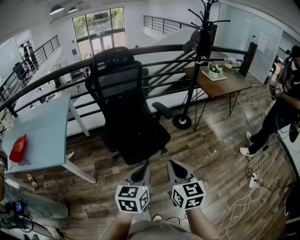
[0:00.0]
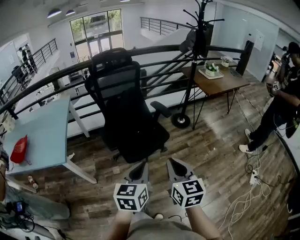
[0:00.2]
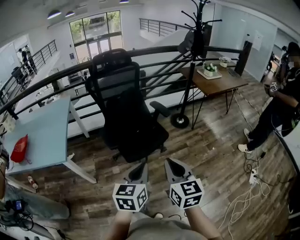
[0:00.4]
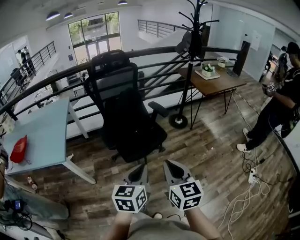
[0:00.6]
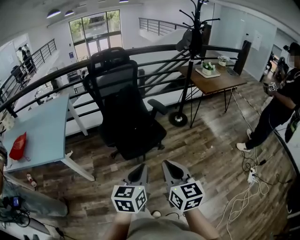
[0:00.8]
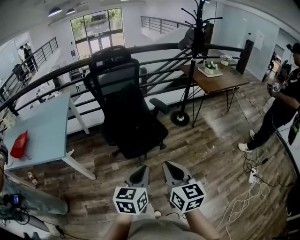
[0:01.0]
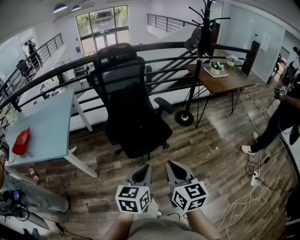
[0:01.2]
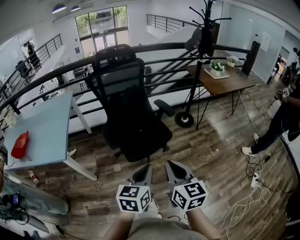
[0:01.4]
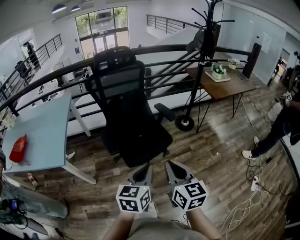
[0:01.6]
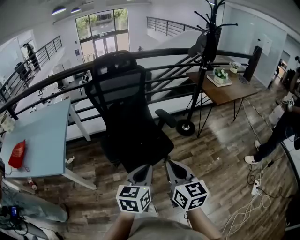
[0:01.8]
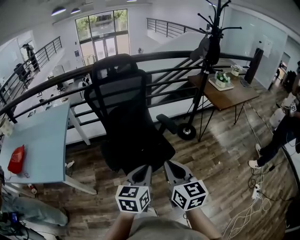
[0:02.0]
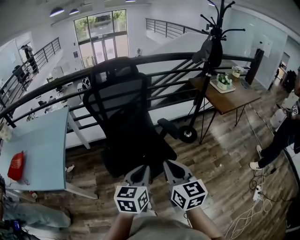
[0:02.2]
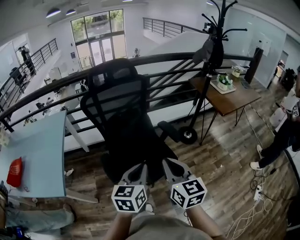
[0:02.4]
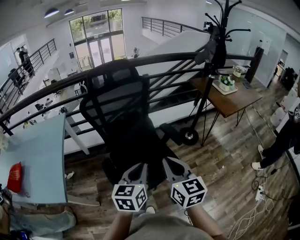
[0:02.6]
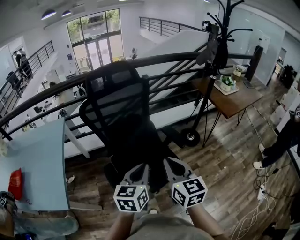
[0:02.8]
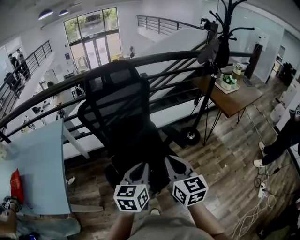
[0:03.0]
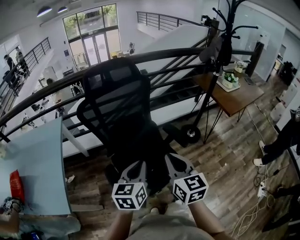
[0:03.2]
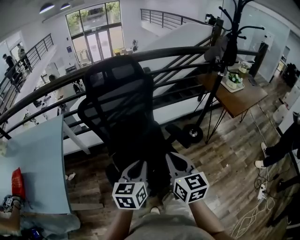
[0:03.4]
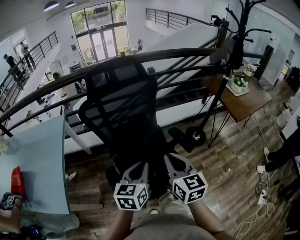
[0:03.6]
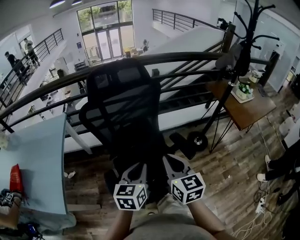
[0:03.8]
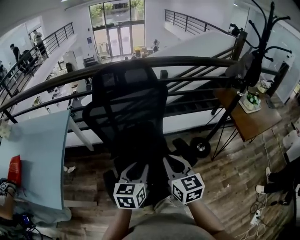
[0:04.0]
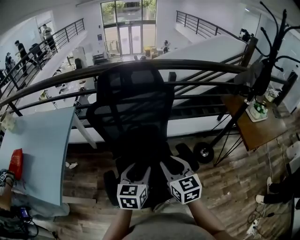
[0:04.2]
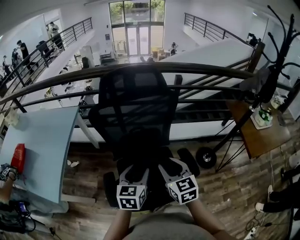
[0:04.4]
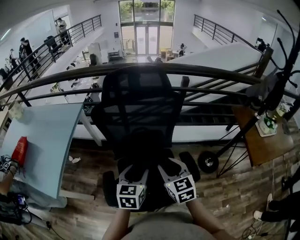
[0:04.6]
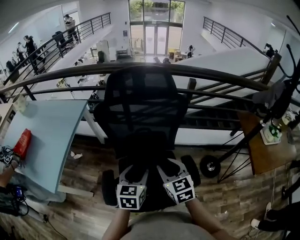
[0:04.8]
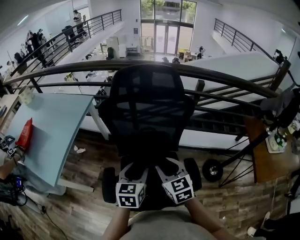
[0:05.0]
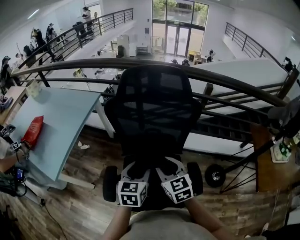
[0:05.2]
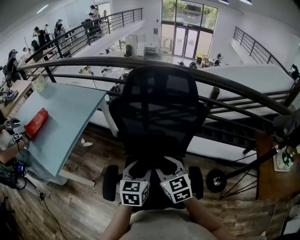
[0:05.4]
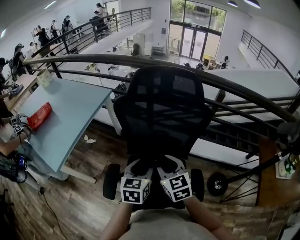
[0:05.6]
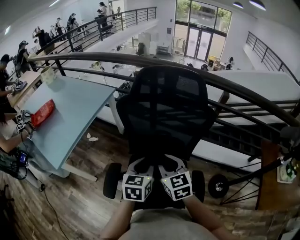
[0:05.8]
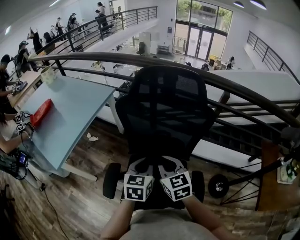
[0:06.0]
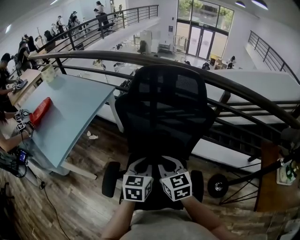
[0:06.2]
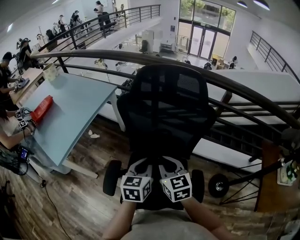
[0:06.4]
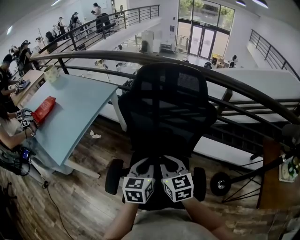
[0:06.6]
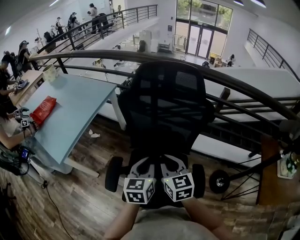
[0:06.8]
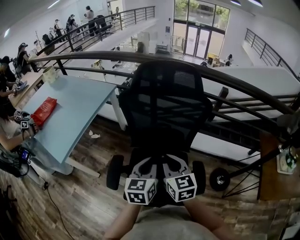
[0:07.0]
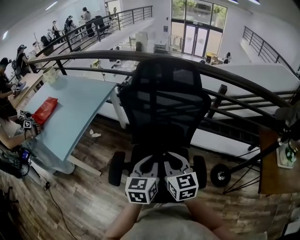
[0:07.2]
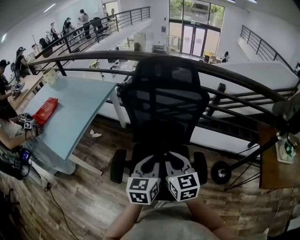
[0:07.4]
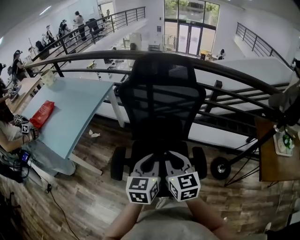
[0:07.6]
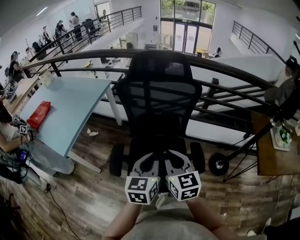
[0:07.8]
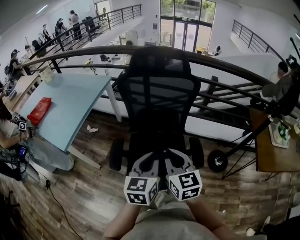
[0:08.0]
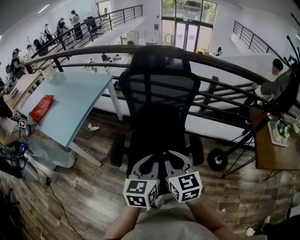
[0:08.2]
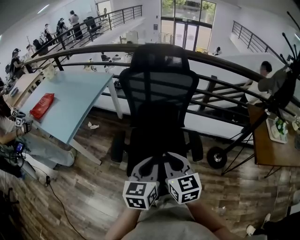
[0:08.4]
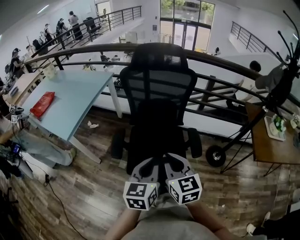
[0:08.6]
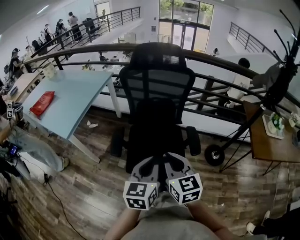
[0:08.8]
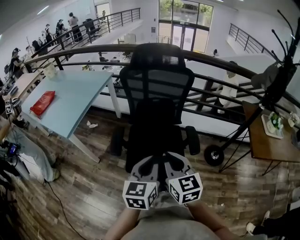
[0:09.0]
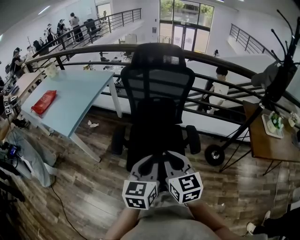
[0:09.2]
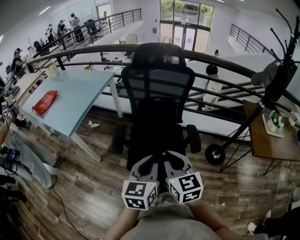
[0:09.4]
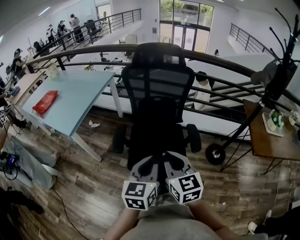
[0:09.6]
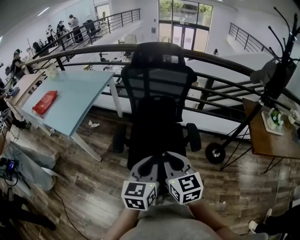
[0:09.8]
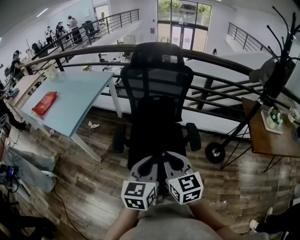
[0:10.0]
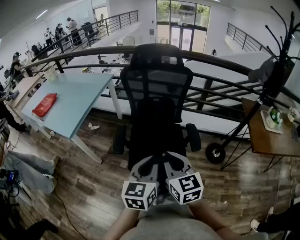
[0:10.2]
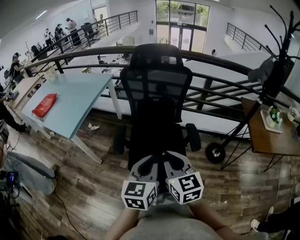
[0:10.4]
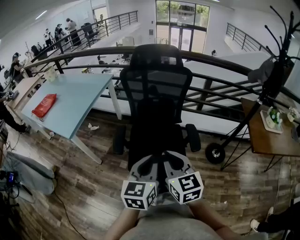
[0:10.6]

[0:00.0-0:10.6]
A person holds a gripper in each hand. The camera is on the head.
0:00.0 to 0:01.6: The right gripper reaches approximately 5 cm backward, then returns, while the left gripper goes backward and returns, roughly 5 cm each way.
0:01.6 to 0:03.0: The grippers both shift forward by about 30 cm.
0:03.0 to 0:04.6: The left gripper heads forward, covering approximately 15 cm, turns by about 20 degrees, and opens its fingers; the right gripper is displaced forward and downward by roughly 20 cm, swivels about 30 degrees, and opens up.
0:04.6 to 0:06.0: The two grippers go some 10 cm forward. The left gripper closes. Meanwhile the right gripper turns by approximately 20 degrees, and closes.
0:06.0 to 0:07.6: Both grippers move backward, some 15 cm.
0:07.6 to 0:09.0: Both grippers travel together backward, about 20 cm.
0:09.0 to 0:10.6: There are only small adjustments of the grippers.

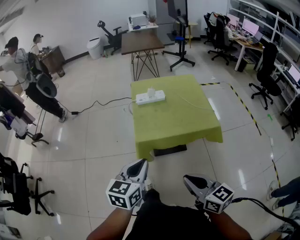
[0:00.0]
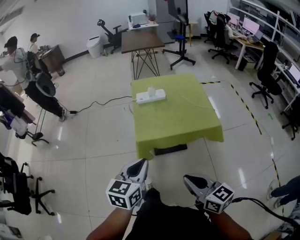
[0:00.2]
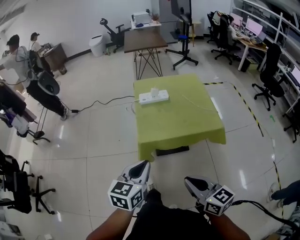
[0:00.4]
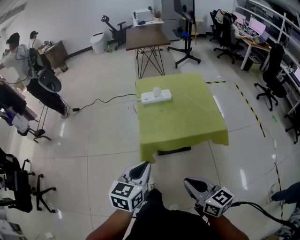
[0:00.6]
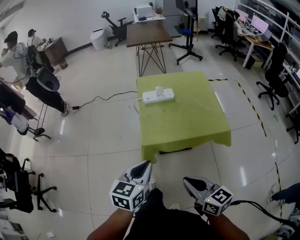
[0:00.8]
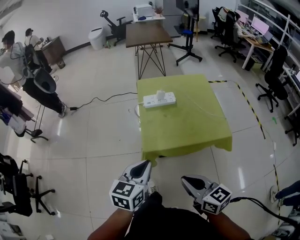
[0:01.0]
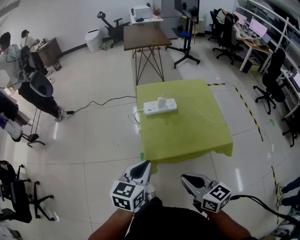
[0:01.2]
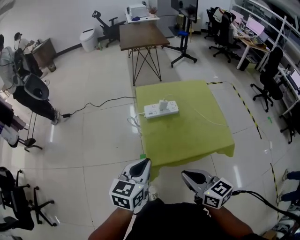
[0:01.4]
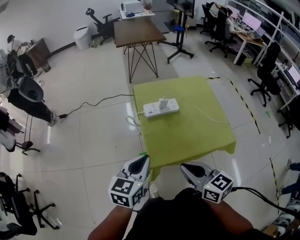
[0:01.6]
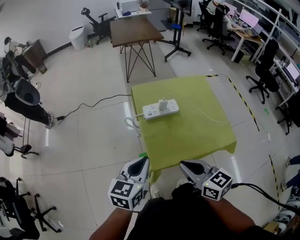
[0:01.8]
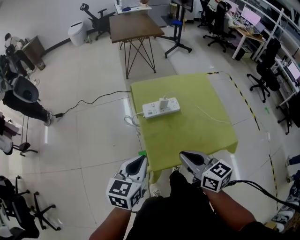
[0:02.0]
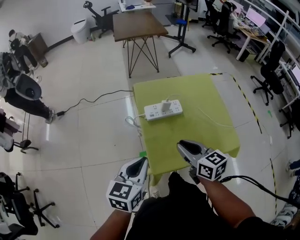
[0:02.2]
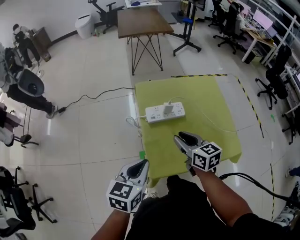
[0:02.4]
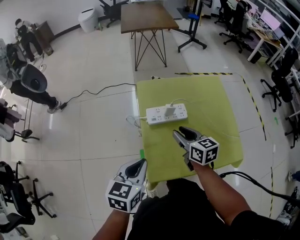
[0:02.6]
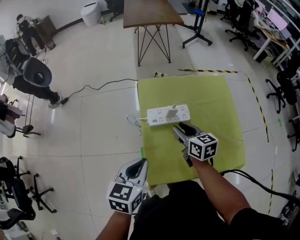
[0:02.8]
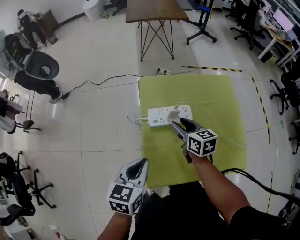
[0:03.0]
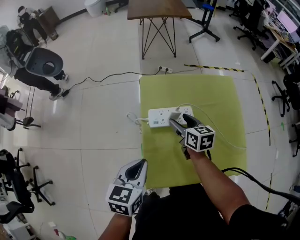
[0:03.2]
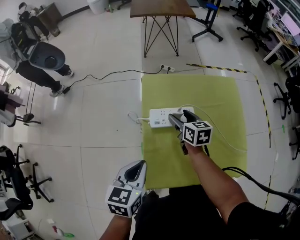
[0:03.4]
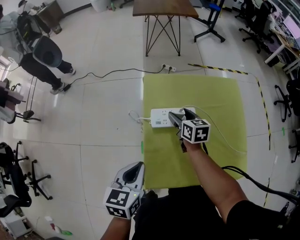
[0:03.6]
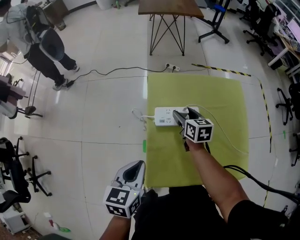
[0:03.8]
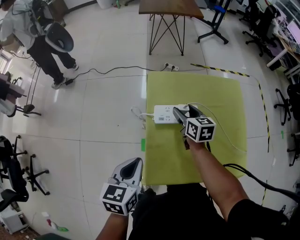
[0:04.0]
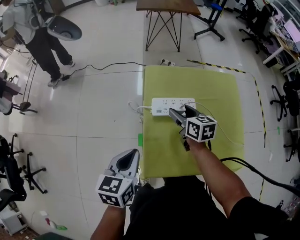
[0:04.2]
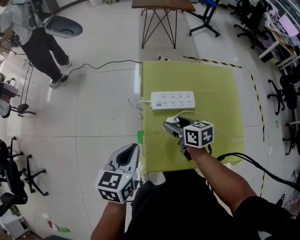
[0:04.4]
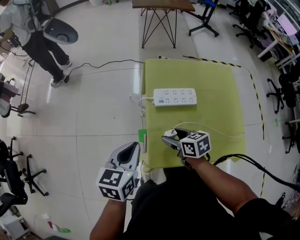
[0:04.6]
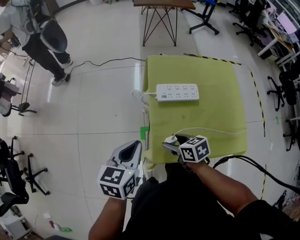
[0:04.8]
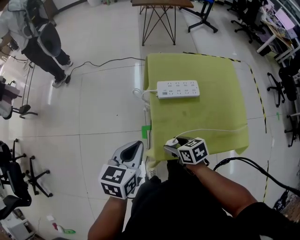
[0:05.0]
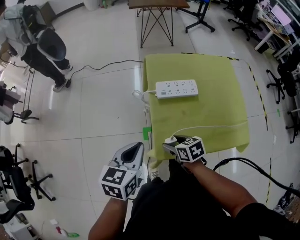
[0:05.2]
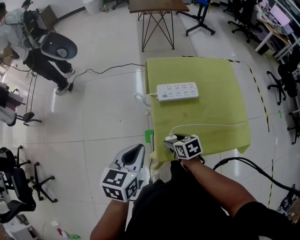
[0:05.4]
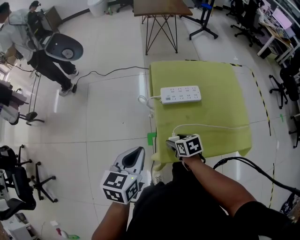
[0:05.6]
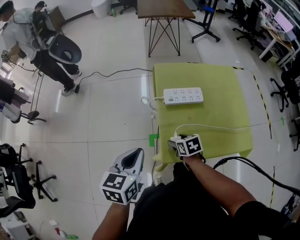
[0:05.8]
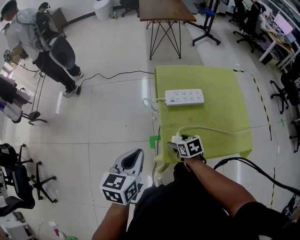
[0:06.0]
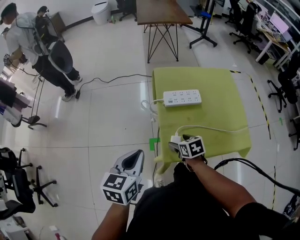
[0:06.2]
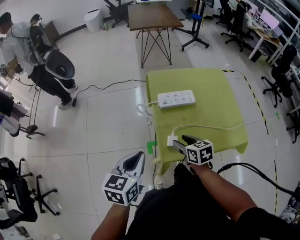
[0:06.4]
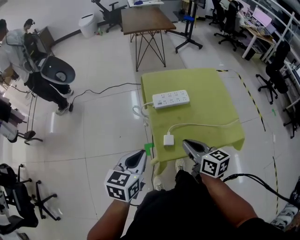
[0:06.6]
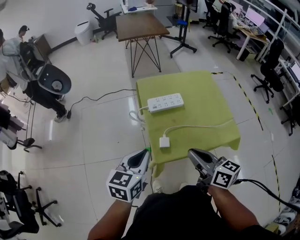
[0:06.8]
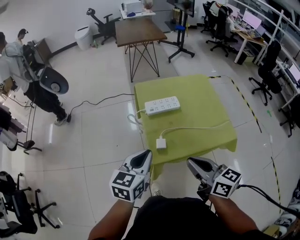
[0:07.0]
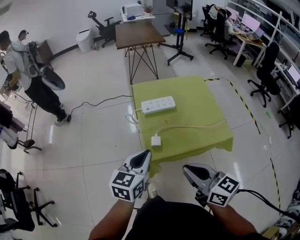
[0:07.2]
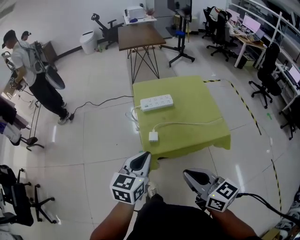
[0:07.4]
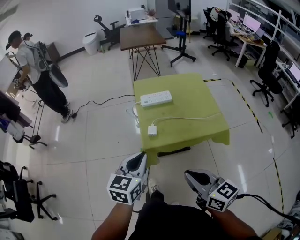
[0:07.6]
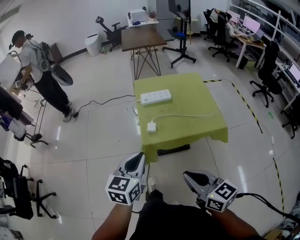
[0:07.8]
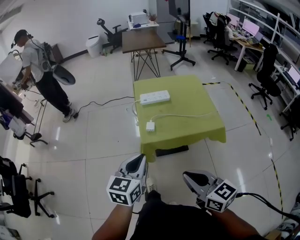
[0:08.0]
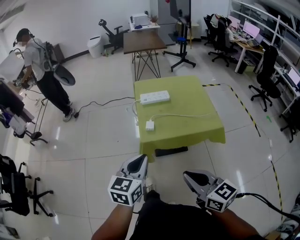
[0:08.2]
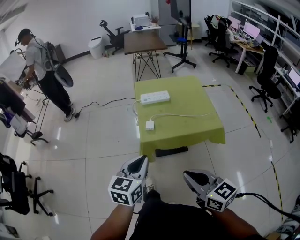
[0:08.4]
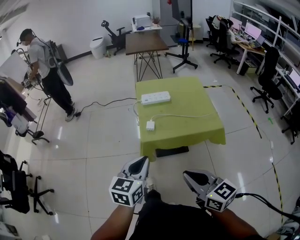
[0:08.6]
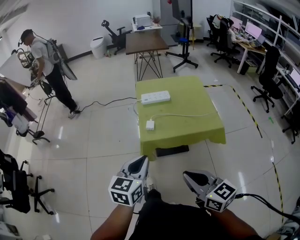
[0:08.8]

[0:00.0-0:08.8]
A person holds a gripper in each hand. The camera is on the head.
0:00.0 to 0:01.4: The two grippers go roughly 20 cm forward.
0:01.4 to 0:03.0: The right gripper goes roughly 40 cm forward and downward, and opens its fingers. The left gripper goes about 20 cm forward and downward.
0:03.0 to 0:04.4: The right gripper moves to the left and backward, roughly 10 cm. Meanwhile the left gripper shifts approximately 5 cm to the left.
0:04.4 to 0:05.8: The left gripper travels backward and to the left by some 10 cm; the right gripper goes roughly 15 cm backward, downward and to the left, and rotates some 20 degrees.
0:05.8 to 0:07.4: The left gripper moves backward, to the right and upward, about 20 cm. Meanwhile the right gripper heads upward and backward, covering some 40 cm, points its fingers roughly 40 degrees further upward, and closes its fingers.
0:07.4 to 0:08.8: The grippers both shift backward by approximately 15 cm.

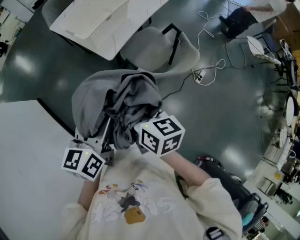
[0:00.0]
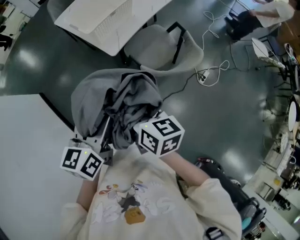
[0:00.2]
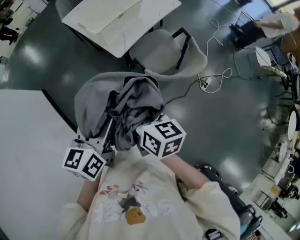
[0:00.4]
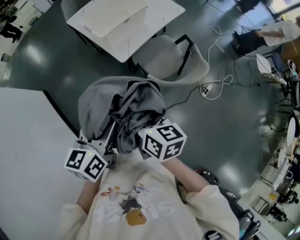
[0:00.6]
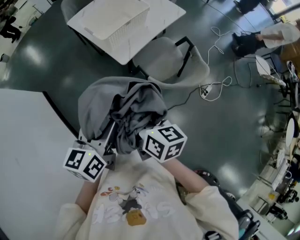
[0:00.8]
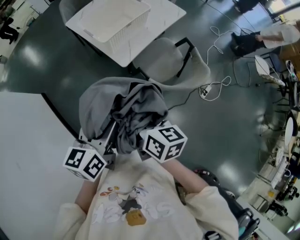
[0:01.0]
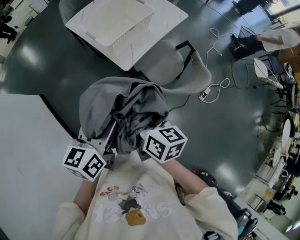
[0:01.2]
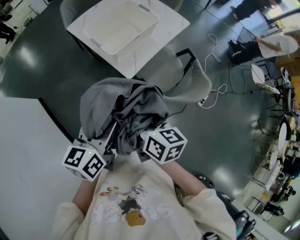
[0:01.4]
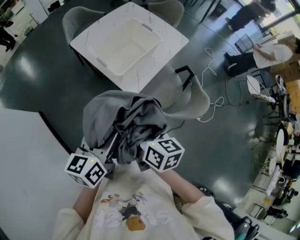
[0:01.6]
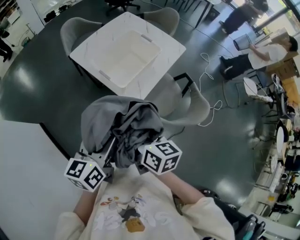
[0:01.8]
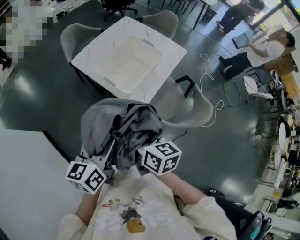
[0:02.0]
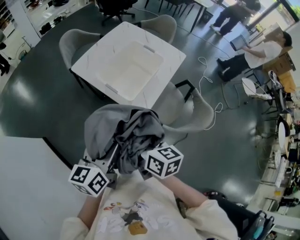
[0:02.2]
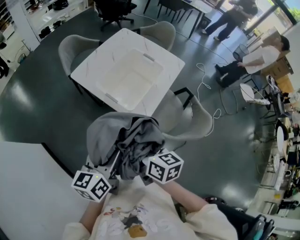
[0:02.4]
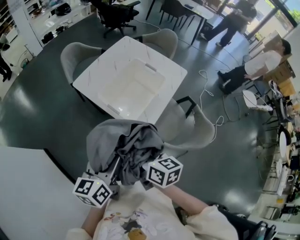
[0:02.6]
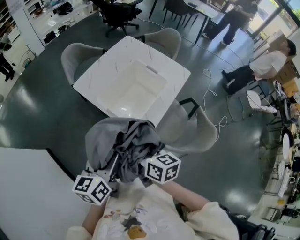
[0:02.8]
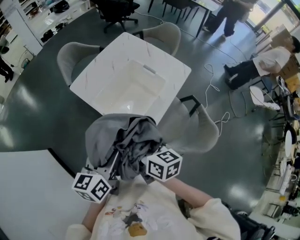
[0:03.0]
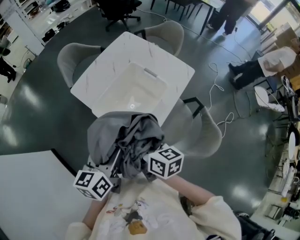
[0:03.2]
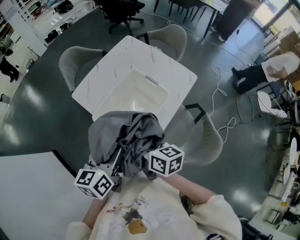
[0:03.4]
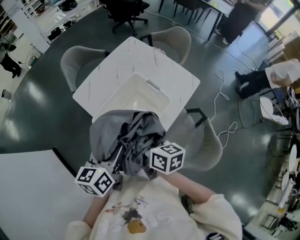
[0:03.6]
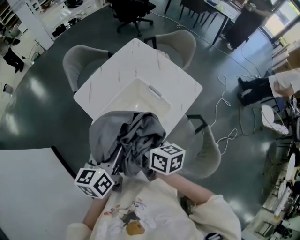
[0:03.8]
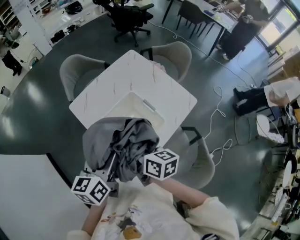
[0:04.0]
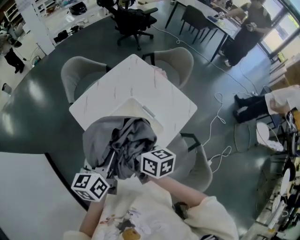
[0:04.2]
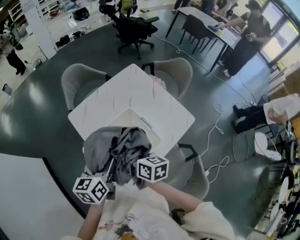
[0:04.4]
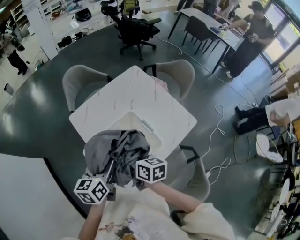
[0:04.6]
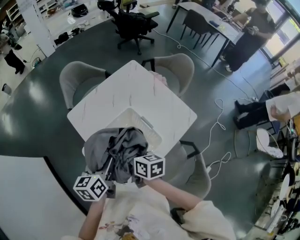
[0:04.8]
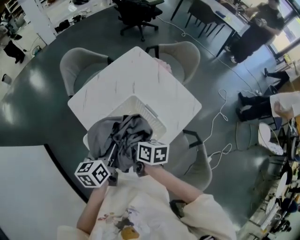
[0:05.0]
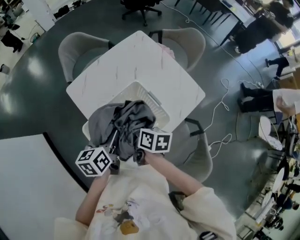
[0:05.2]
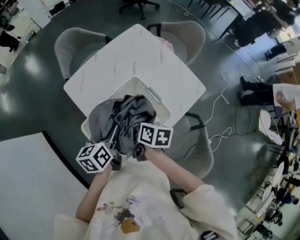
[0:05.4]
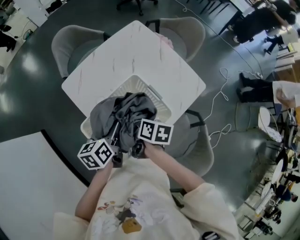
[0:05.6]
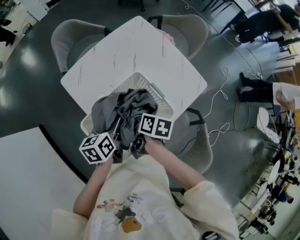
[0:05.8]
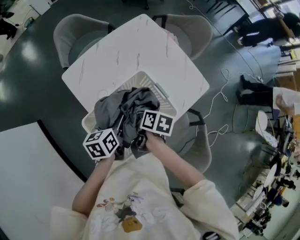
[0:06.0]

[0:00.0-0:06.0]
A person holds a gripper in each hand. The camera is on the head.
0:00.0 to 0:01.6: The grippers both shift forward and to the left by some 15 cm.
0:01.6 to 0:03.0: The two grippers go about 20 cm forward.
0:03.0 to 0:04.4: The right gripper shifts approximately 20 cm forward, while the left gripper moves forward and to the right, roughly 20 cm.
0:04.4 to 0:06.0: The right gripper is displaced downward by approximately 15 cm, and changes its angle by some 30 degrees. The left gripper heads downward and forward, covering about 15 cm.
